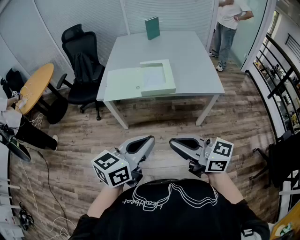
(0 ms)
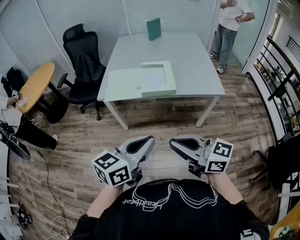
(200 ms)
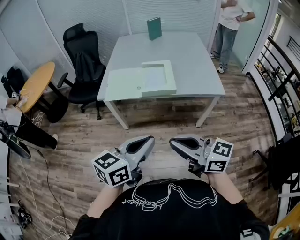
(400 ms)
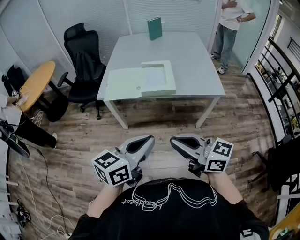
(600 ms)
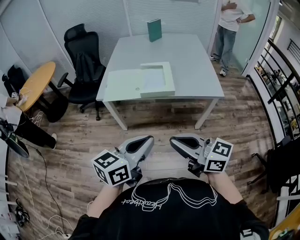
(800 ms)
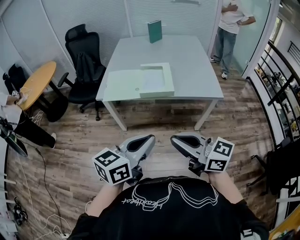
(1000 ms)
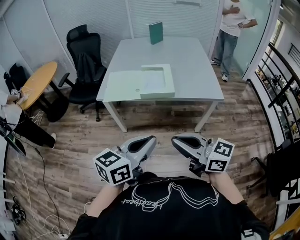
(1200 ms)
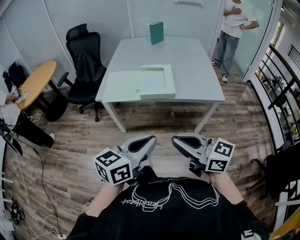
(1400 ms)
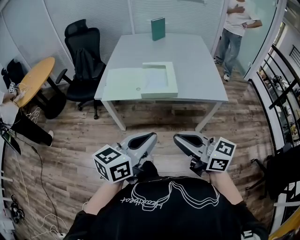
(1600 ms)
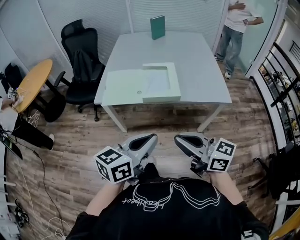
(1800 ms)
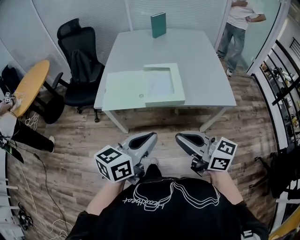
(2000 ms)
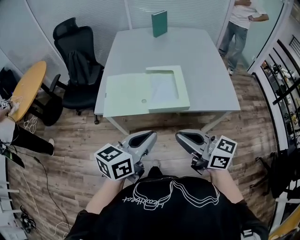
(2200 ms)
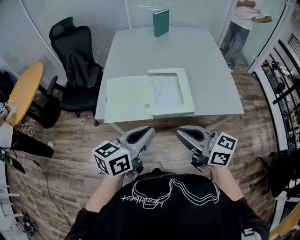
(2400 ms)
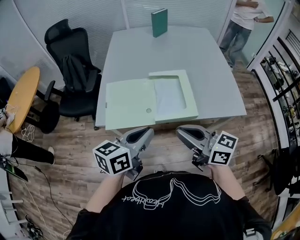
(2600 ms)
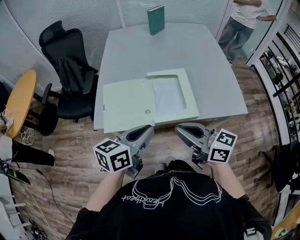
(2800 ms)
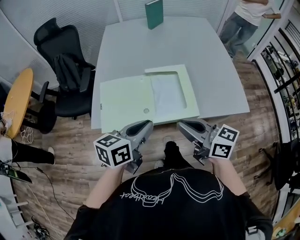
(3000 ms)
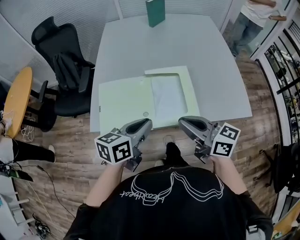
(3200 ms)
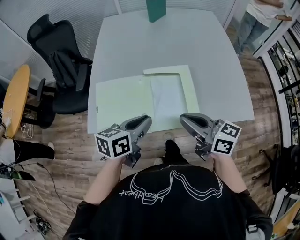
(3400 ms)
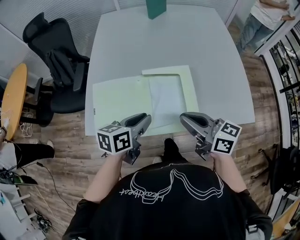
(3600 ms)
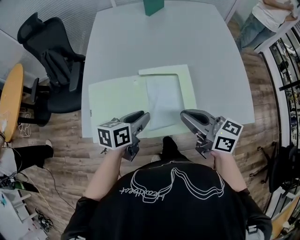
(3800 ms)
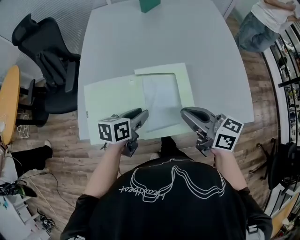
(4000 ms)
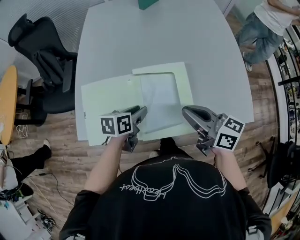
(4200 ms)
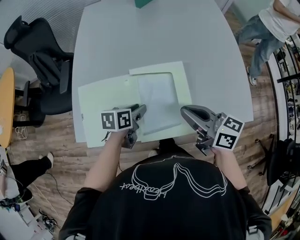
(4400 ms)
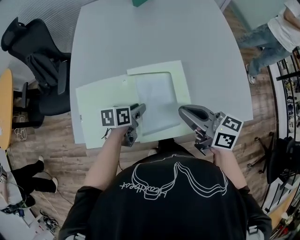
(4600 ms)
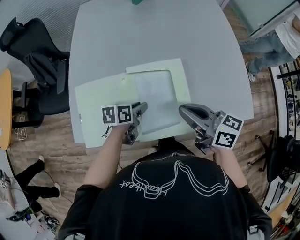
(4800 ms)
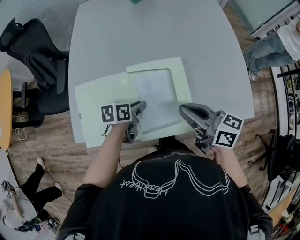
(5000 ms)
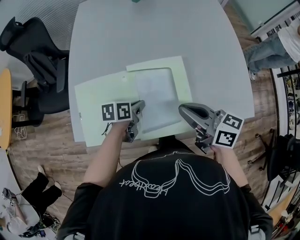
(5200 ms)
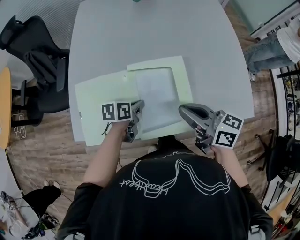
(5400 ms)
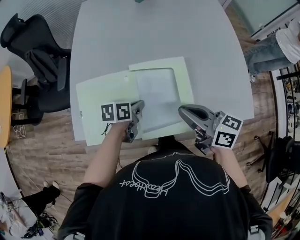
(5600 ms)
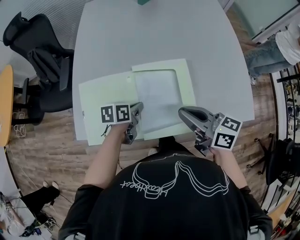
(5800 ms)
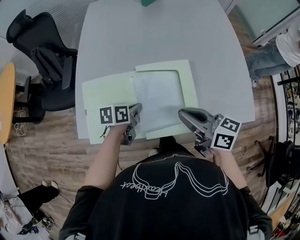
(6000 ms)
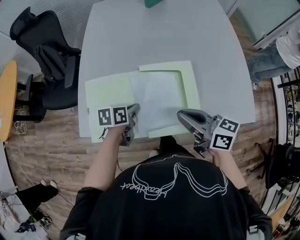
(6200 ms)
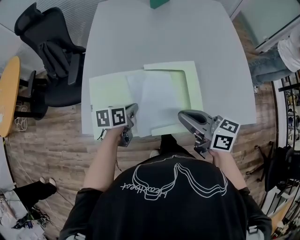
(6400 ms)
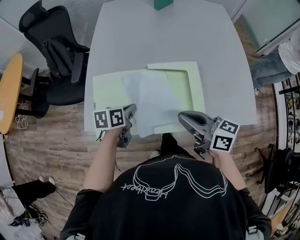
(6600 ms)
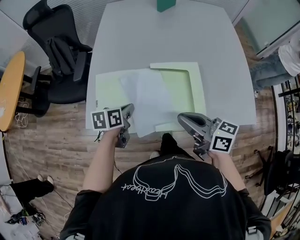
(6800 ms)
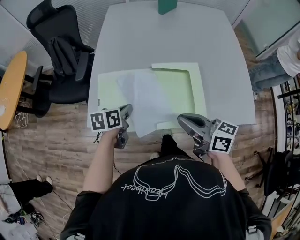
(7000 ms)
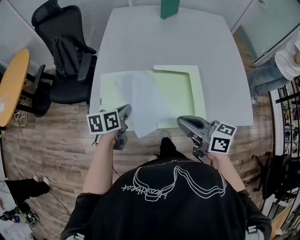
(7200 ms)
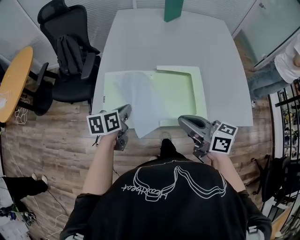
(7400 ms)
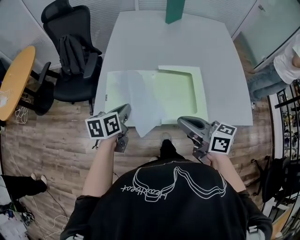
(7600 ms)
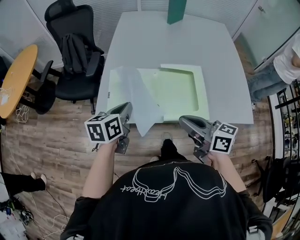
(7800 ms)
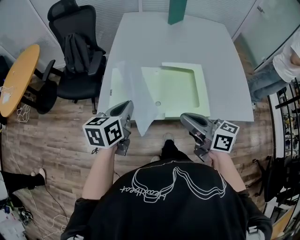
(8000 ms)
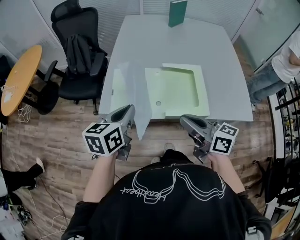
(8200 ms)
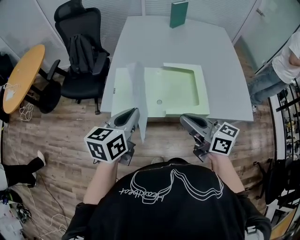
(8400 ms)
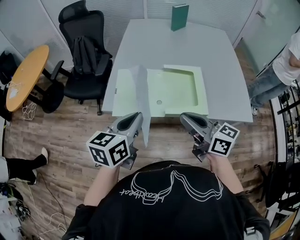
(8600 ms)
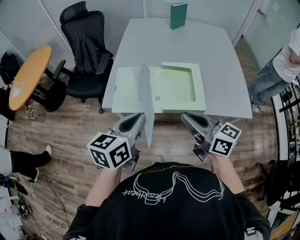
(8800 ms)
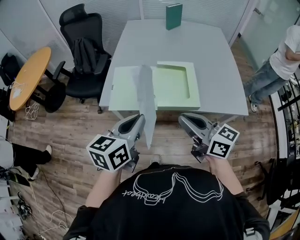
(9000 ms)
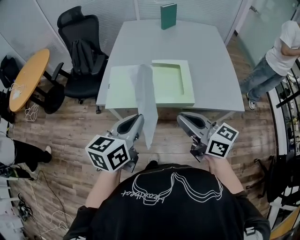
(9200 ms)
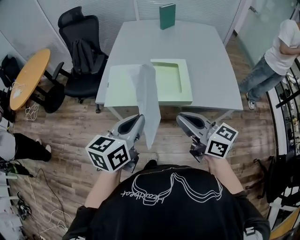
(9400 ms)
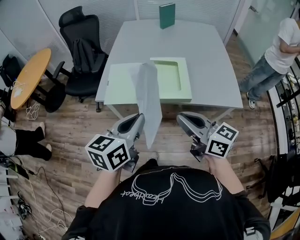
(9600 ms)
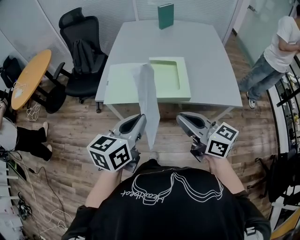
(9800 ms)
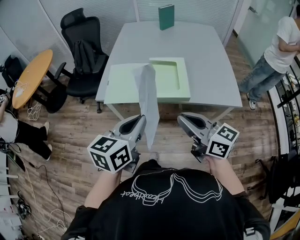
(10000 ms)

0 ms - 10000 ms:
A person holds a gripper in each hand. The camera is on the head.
0 ms - 1400 ms: The grippers make only small movements.
1400 ms - 2800 ms: The two grippers go about 35 cm forward.
2800 ms - 4200 ms: The right gripper shifts some 20 cm forward and to the right, while the left gripper heads forward and downward, covering roughly 30 cm, rotates roughly 30 degrees, and opens.
4200 ms - 5800 ms: The left gripper closes up.
5800 ms - 7200 ms: The left gripper travels to the left, upward and backward by about 15 cm; the right gripper moves backward and to the left, approximately 10 cm.
7200 ms - 8600 ms: The right gripper goes about 10 cm backward and upward, while the left gripper travels backward and upward by about 25 cm, and changes its angle by some 30 degrees.
8600 ms - 10000 ms: The two grippers go approximately 15 cm backward and to the right.

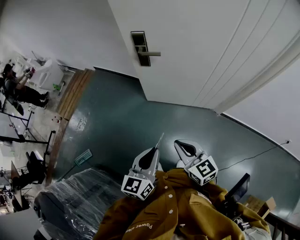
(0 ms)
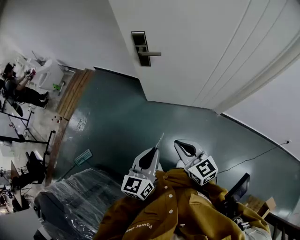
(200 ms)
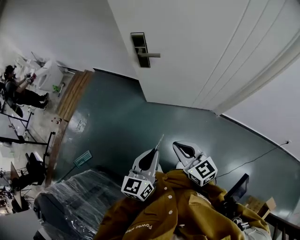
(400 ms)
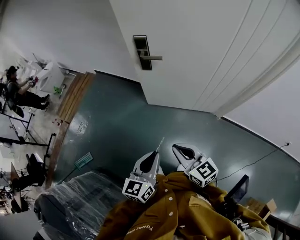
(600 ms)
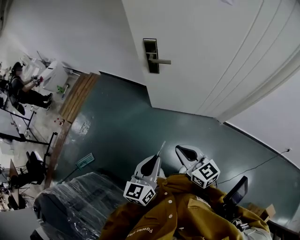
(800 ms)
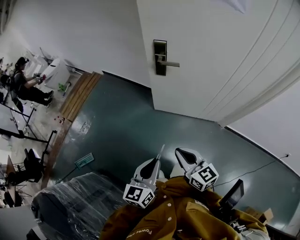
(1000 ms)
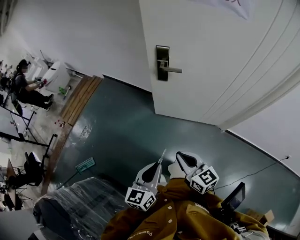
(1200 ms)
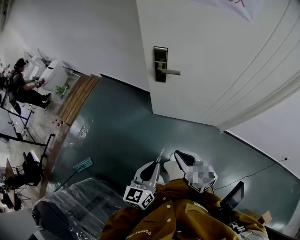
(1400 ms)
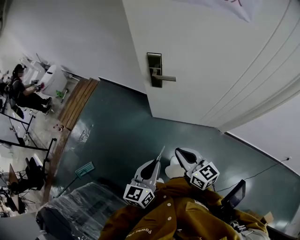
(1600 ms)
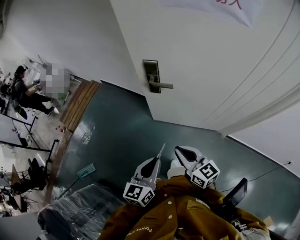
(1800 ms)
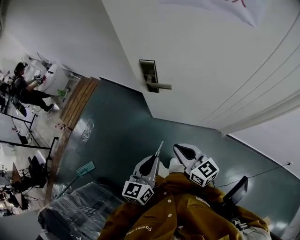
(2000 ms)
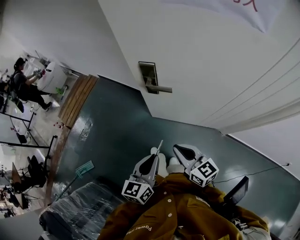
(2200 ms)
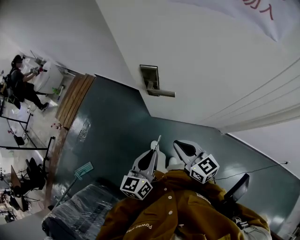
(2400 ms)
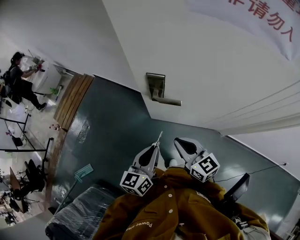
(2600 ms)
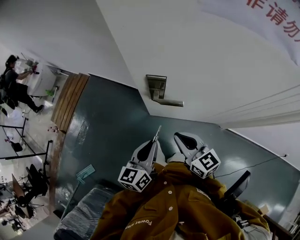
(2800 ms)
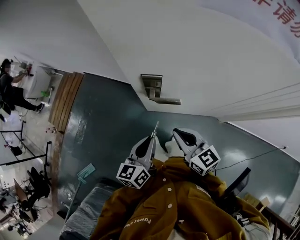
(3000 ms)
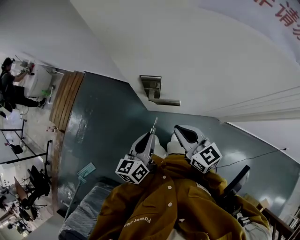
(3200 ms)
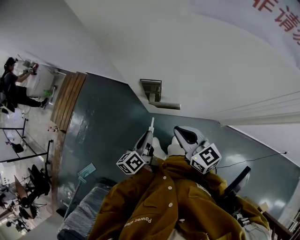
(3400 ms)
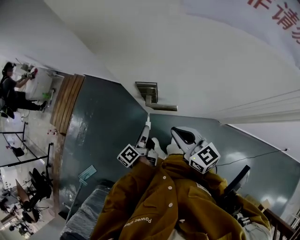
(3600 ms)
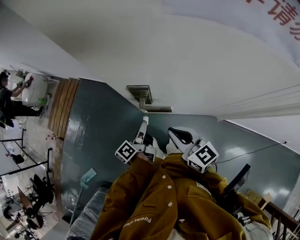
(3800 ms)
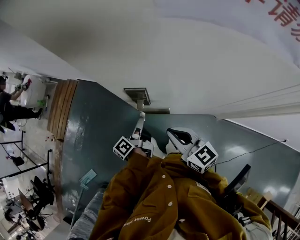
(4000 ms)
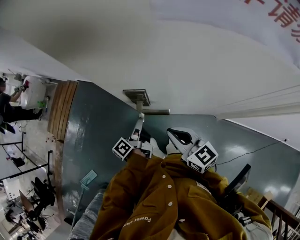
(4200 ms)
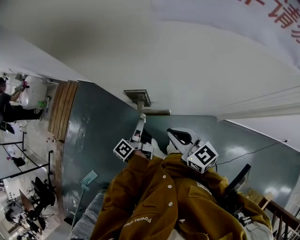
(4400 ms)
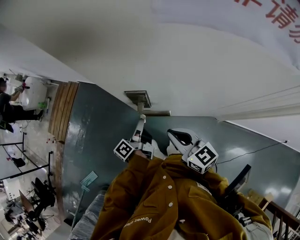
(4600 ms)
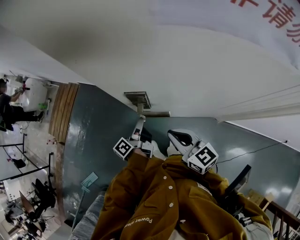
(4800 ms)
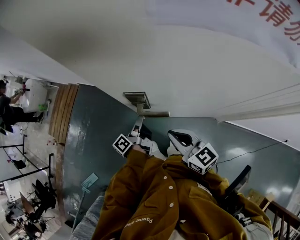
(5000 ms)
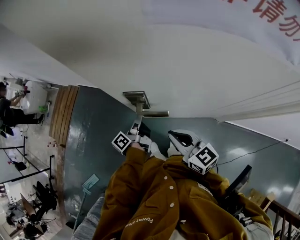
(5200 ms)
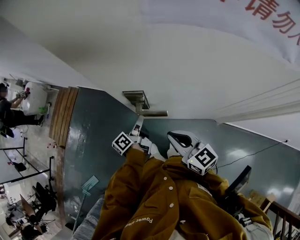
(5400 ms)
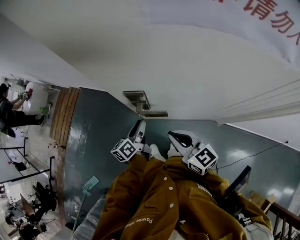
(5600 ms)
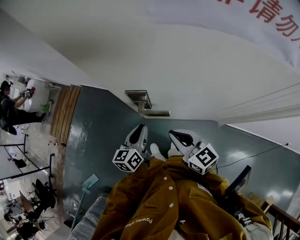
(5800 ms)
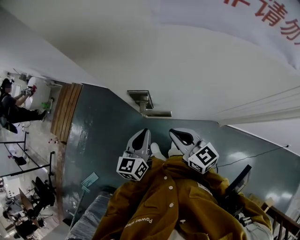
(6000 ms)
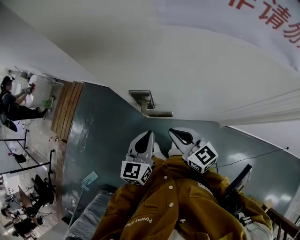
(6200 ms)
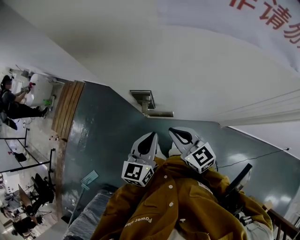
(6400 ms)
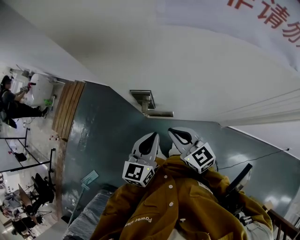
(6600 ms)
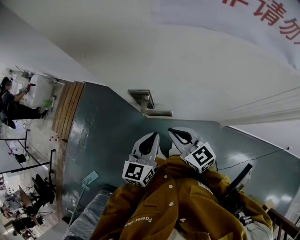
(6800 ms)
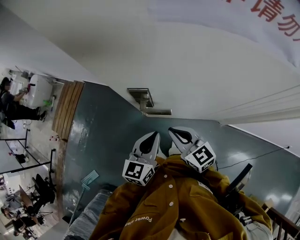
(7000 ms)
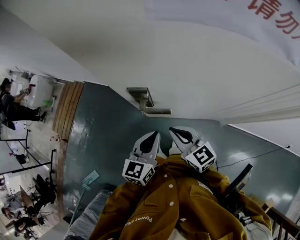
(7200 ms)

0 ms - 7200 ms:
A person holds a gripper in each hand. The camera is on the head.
0 ms - 1400 ms: The right gripper heads forward and to the left, covering roughly 10 cm. Meanwhile the left gripper goes roughly 5 cm to the left.
1400 ms - 2800 ms: Both grippers travel together forward, some 30 cm.
2800 ms - 4400 ms: The left gripper moves forward and downward, approximately 20 cm, and rotates around the line of its fingers by approximately 50 degrees, counterclockwise from behind. The right gripper moves forward, roughly 5 cm.
4400 ms - 5800 ms: The left gripper rotates around the line of its fingers by approximately 50 degrees, clockwise from behind.
5800 ms - 7200 ms: The left gripper is displaced upward, backward and to the right by roughly 10 cm.

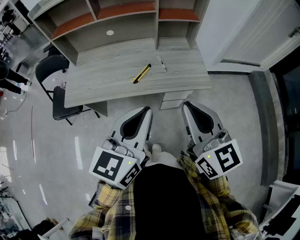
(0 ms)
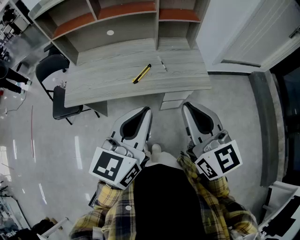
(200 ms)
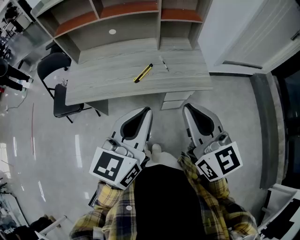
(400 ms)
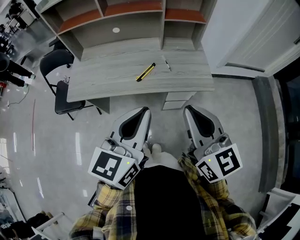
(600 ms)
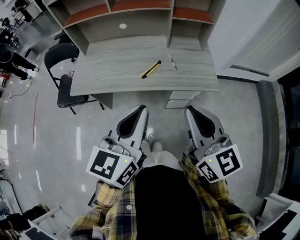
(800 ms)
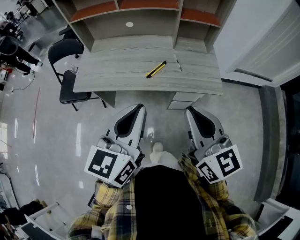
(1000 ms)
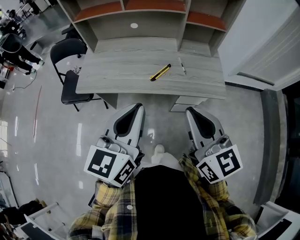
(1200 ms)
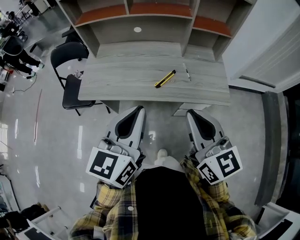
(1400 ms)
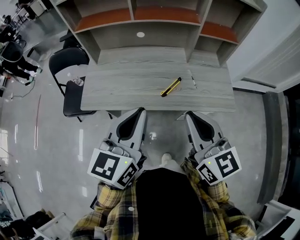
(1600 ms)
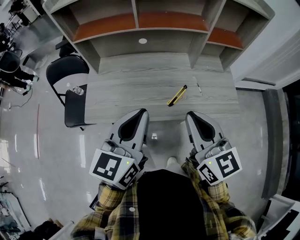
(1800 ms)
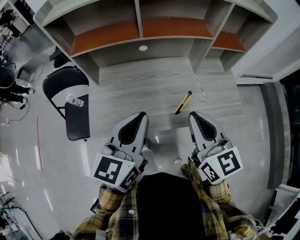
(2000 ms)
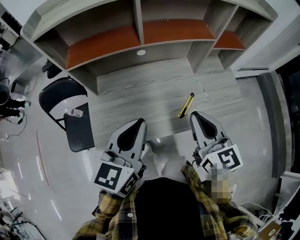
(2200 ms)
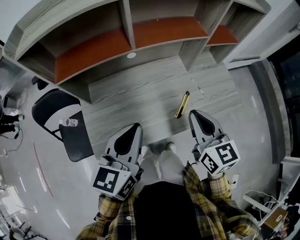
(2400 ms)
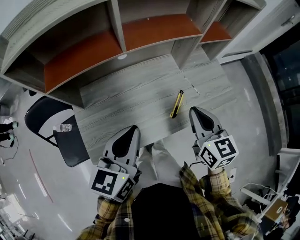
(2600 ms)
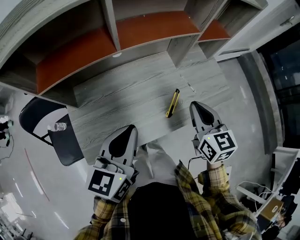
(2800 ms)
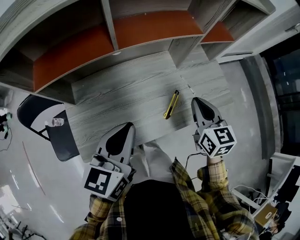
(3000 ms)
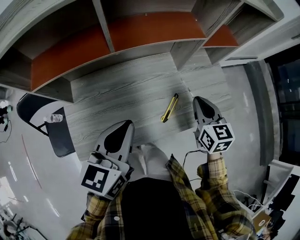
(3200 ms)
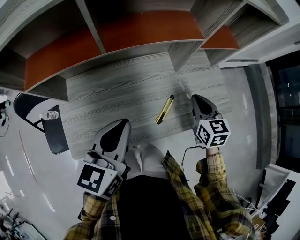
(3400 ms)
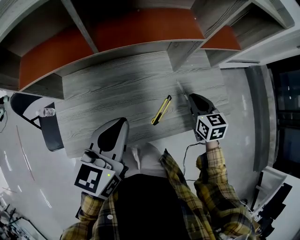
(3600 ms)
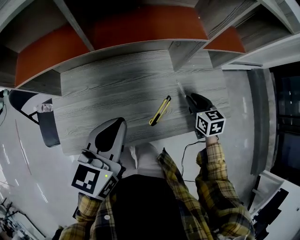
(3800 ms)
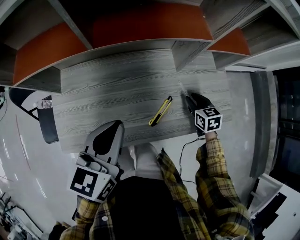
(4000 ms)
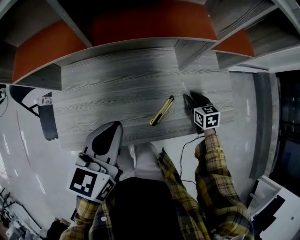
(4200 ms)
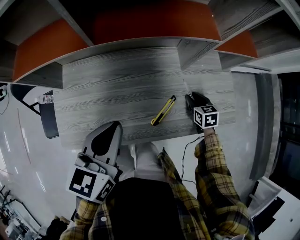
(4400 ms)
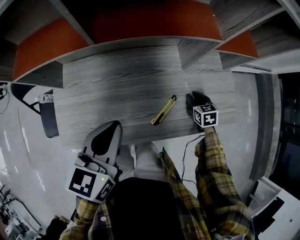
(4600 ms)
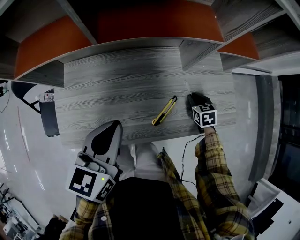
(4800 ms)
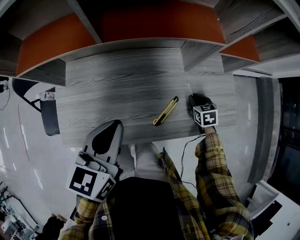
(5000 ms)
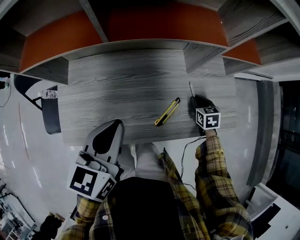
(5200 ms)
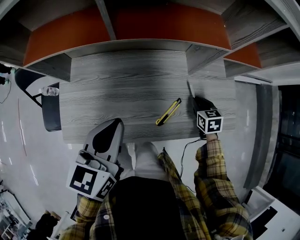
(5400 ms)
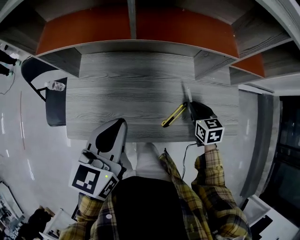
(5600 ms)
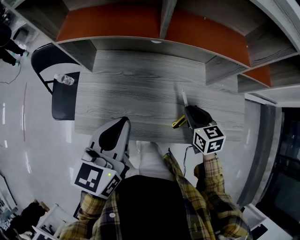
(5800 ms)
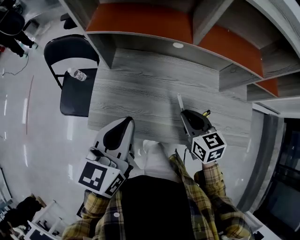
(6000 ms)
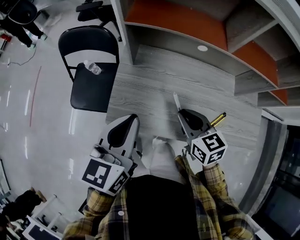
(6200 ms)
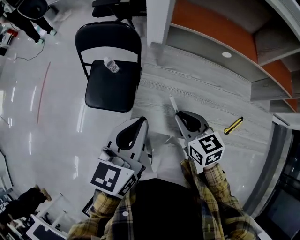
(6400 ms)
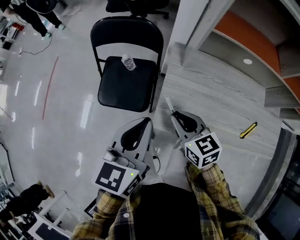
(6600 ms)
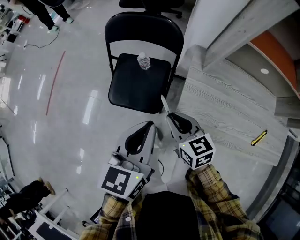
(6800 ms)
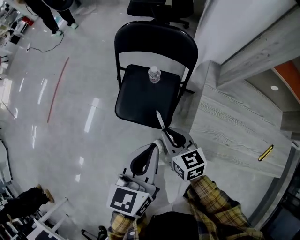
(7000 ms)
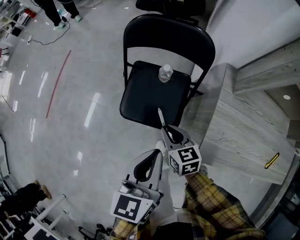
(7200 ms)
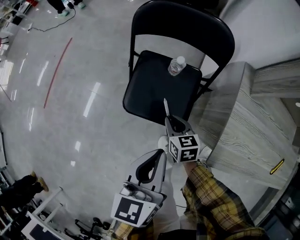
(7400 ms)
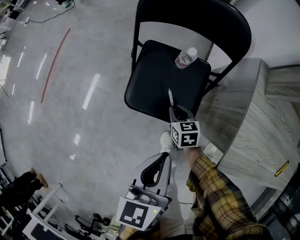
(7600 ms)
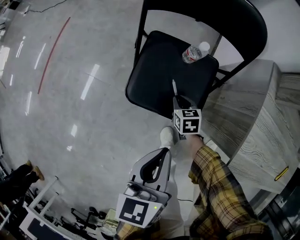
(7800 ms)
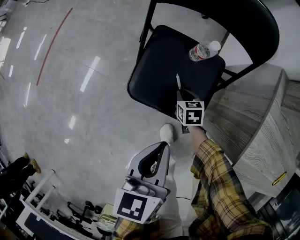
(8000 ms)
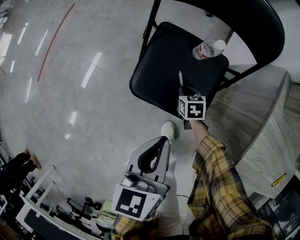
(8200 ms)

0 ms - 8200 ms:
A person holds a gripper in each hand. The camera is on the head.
0 ms - 1600 ms: The grippers both shift to the left and forward by roughly 15 cm.
1600 ms - 3200 ms: The right gripper moves about 30 cm, and turns by some 30 degrees; the left gripper moves approximately 25 cm, and changes its angle by approximately 20 degrees.
3200 ms - 5000 ms: The left gripper shifts by roughly 5 cm. The right gripper shifts roughly 25 cm downward, and swivels approximately 30 degrees.
5000 ms - 6600 ms: The two grippers travel together, about 50 cm. The right gripper turns by some 40 degrees. Meanwhile the left gripper changes its angle by approximately 20 degrees.
6600 ms - 8200 ms: The left gripper heads downward and to the left, covering some 35 cm, and turns by roughly 30 degrees. The right gripper shifts about 60 cm downward, to the left and forward, and points its fingers about 30 degrees further downward.
